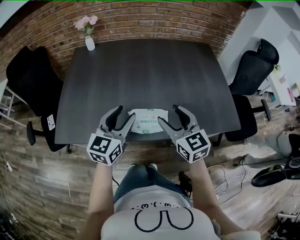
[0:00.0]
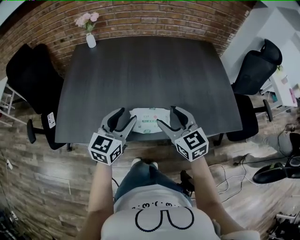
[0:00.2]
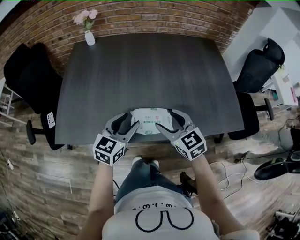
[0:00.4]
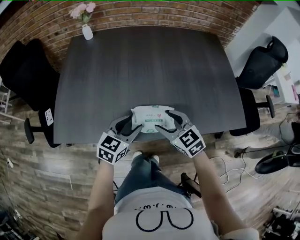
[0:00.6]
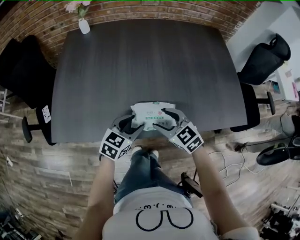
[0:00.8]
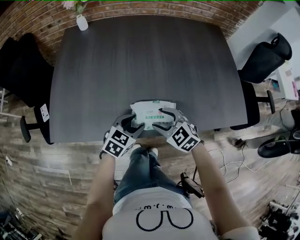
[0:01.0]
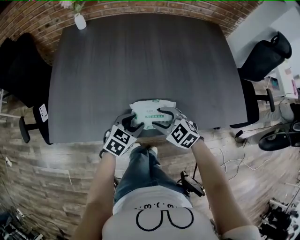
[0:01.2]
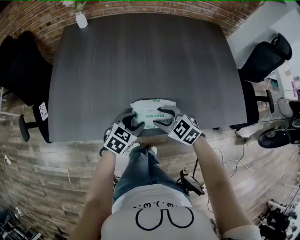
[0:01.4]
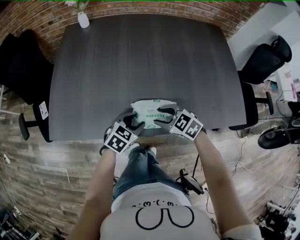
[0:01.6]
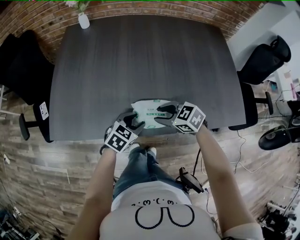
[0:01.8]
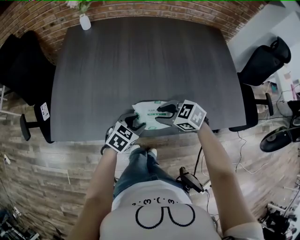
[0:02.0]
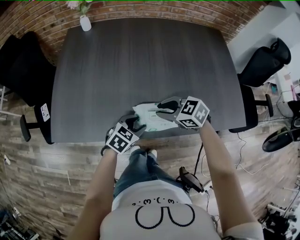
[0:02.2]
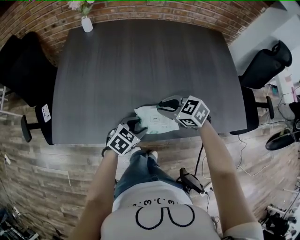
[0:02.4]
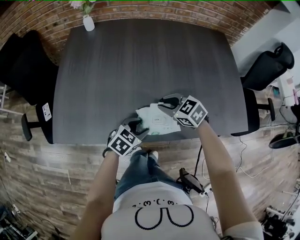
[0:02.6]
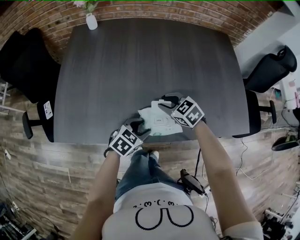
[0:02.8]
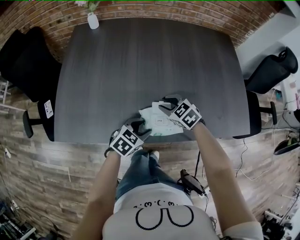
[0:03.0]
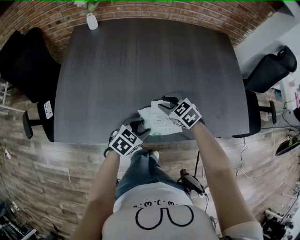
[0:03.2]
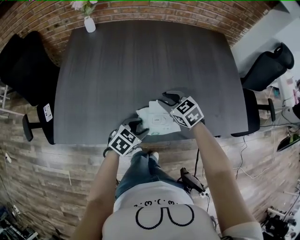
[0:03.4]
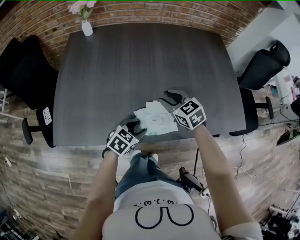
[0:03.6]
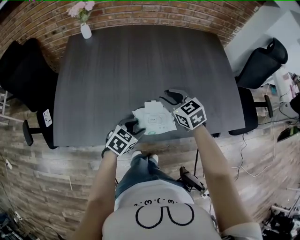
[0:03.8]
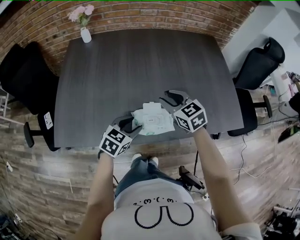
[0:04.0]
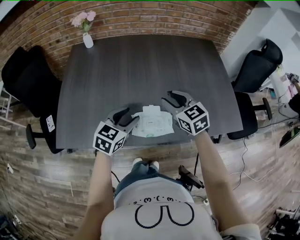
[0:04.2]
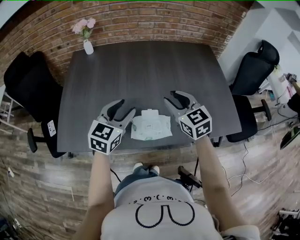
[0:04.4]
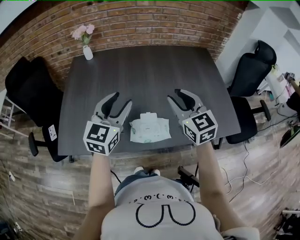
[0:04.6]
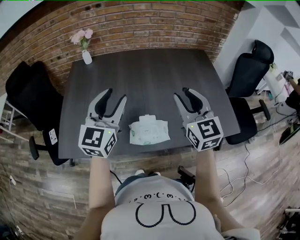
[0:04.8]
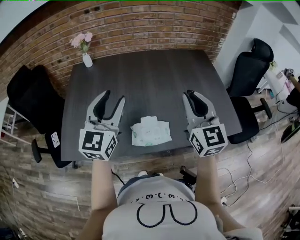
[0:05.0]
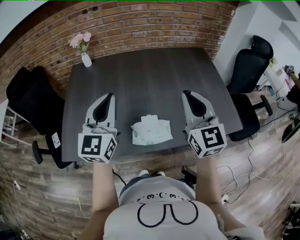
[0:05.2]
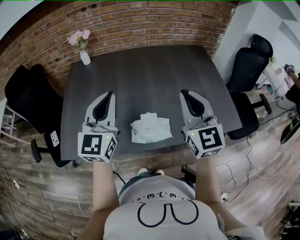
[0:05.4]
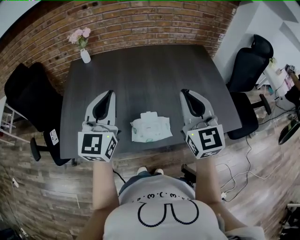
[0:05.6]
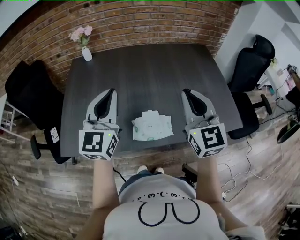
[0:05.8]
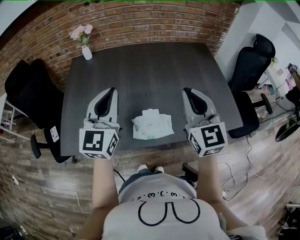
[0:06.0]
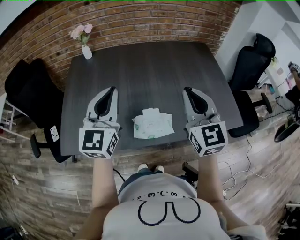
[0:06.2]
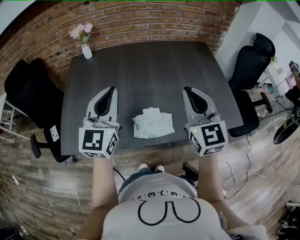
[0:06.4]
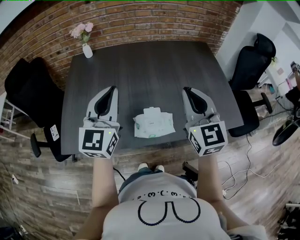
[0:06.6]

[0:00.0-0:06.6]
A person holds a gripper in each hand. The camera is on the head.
0:00.0 to 0:01.6: The two grippers go roughly 20 cm downward. The left gripper tilts its fingers about 40 degrees downward. The right gripper angles its fingers downward, by about 30 degrees.
0:01.6 to 0:03.2: The right gripper moves roughly 10 cm.
0:03.2 to 0:05.0: The two grippers go about 35 cm upward. The right gripper tips its fingers upward by some 50 degrees; the left gripper tips its fingers upward by approximately 50 degrees.
0:05.0 to 0:06.6: The left gripper closes up.

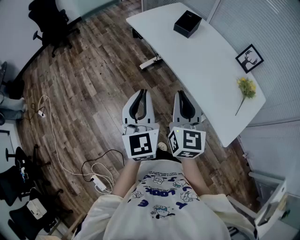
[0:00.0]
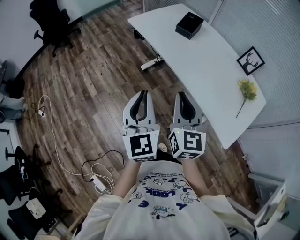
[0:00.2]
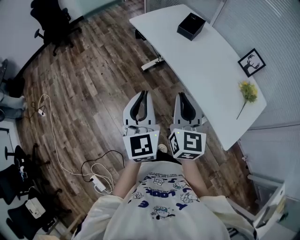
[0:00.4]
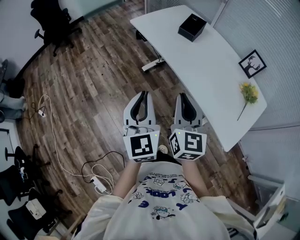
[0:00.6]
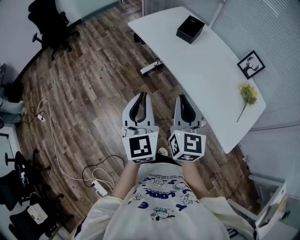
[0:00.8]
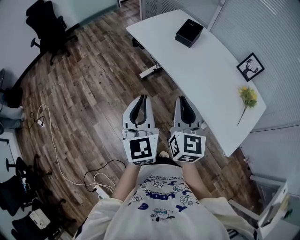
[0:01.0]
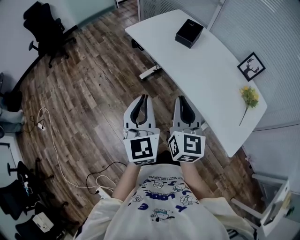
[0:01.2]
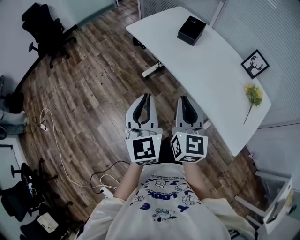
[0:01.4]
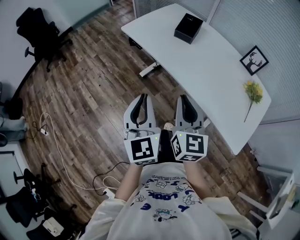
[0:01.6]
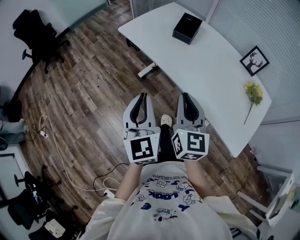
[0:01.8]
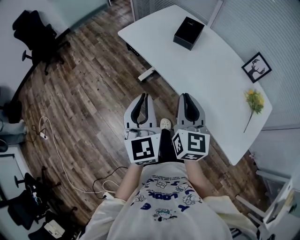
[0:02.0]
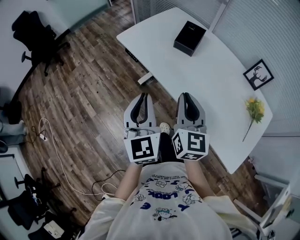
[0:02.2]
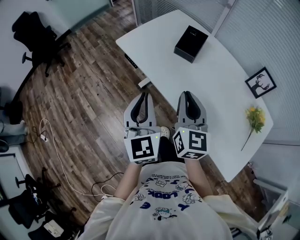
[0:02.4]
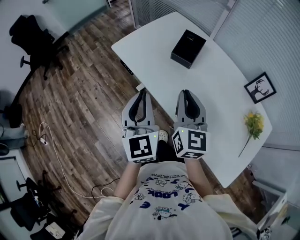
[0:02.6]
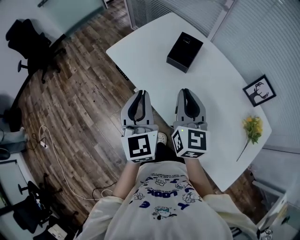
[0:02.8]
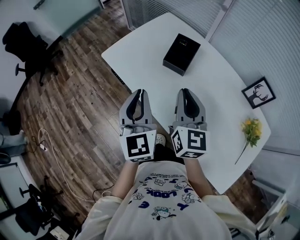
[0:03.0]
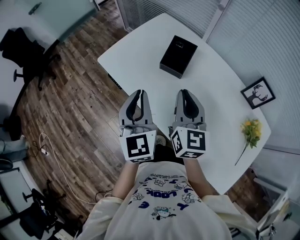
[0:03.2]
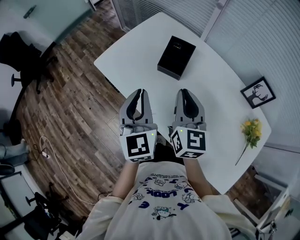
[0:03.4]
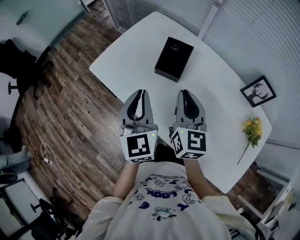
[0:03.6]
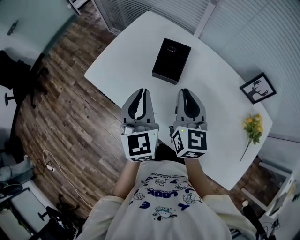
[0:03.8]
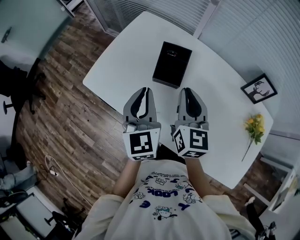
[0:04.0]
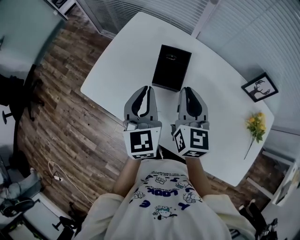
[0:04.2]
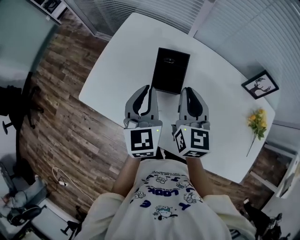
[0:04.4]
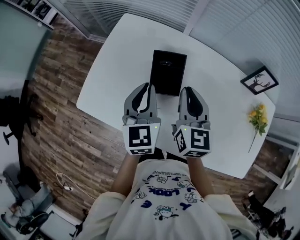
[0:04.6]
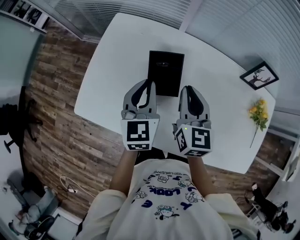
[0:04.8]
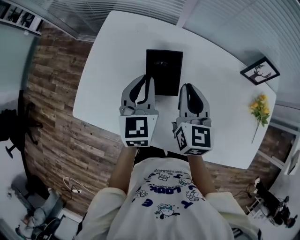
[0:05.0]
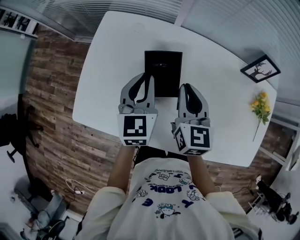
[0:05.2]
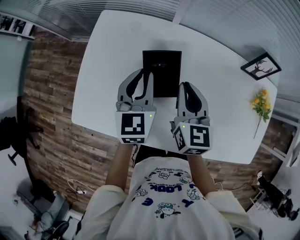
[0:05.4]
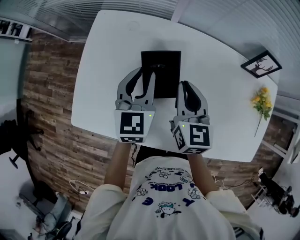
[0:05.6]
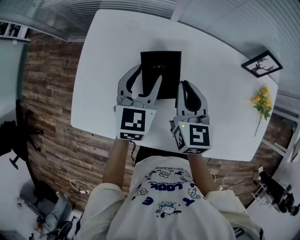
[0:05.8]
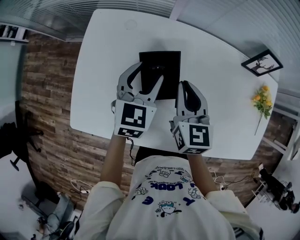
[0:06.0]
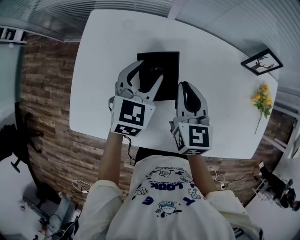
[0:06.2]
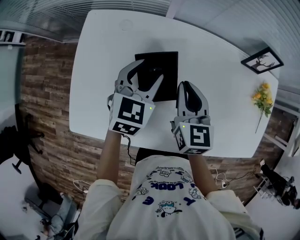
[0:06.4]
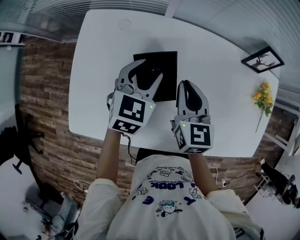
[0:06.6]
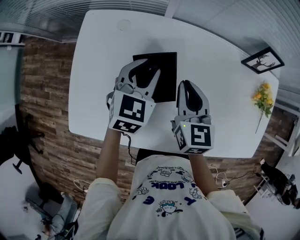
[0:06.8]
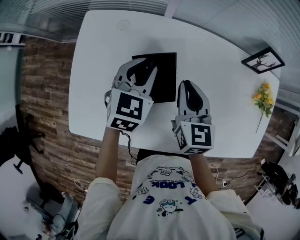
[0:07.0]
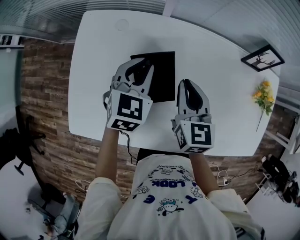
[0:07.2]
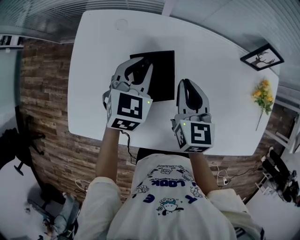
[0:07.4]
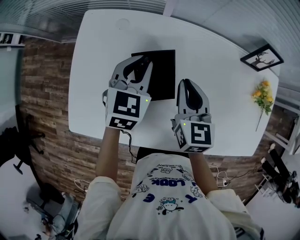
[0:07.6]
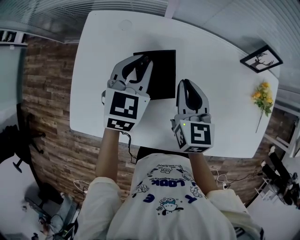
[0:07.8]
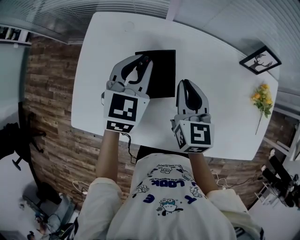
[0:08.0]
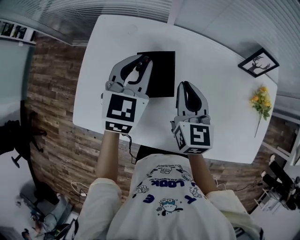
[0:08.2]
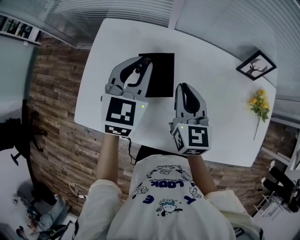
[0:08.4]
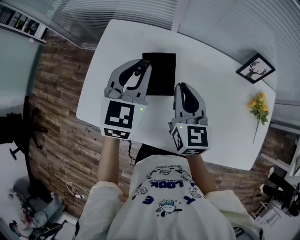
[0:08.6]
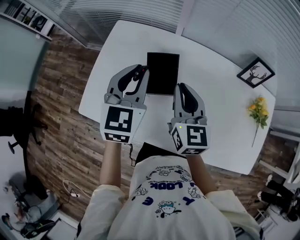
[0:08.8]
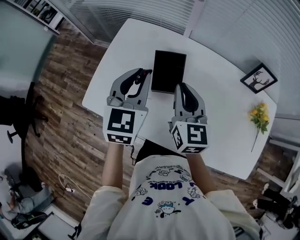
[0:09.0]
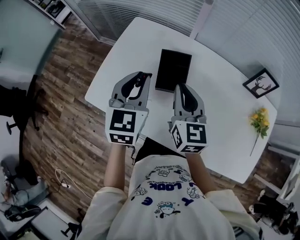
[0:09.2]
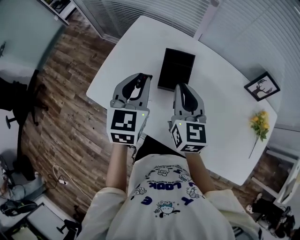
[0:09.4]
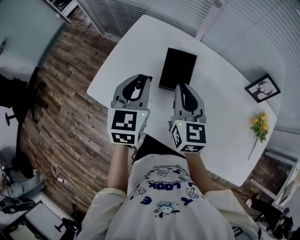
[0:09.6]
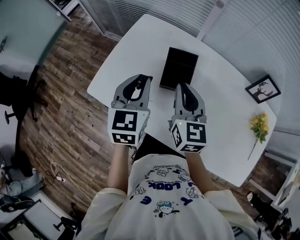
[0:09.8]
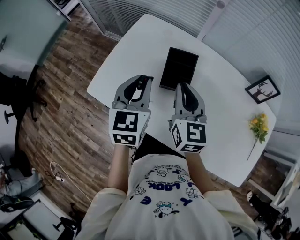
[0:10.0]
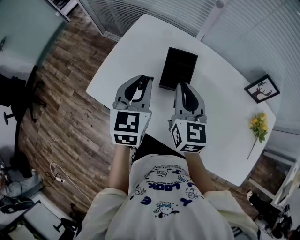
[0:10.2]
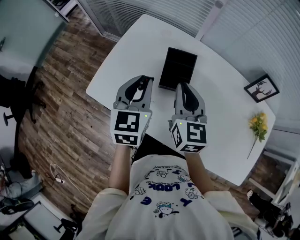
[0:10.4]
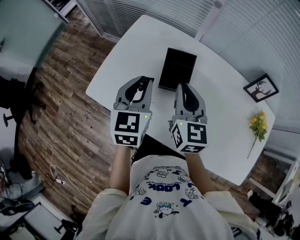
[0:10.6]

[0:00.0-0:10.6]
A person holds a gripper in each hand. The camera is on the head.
0:00.0 to 0:01.6: The grippers both shift forward by roughly 10 cm.
0:01.6 to 0:03.0: The grippers both shift forward by about 30 cm.
0:03.0 to 0:04.6: The left gripper moves some 30 cm, and turns by about 30 degrees; the right gripper ends up approximately 20 cm from where it was, and changes its angle by approximately 30 degrees.
0:04.6 to 0:06.0: The left gripper moves forward and downward, some 15 cm, swivels some 30 degrees, and opens. Meanwhile the right gripper shifts some 10 cm downward and forward.
0:06.0 to 0:07.6: The left gripper closes up.
0:07.6 to 0:09.0: The left gripper is displaced backward and upward by some 20 cm, and turns by roughly 20 degrees; the right gripper goes roughly 15 cm upward and backward.
0:09.0 to 0:10.6: The left gripper shifts by some 5 cm.

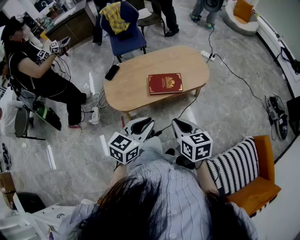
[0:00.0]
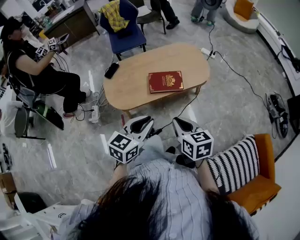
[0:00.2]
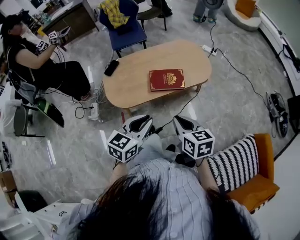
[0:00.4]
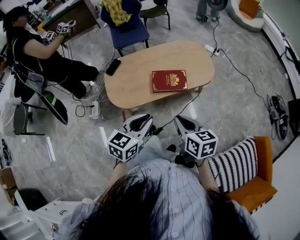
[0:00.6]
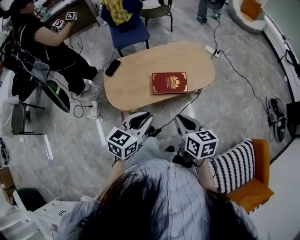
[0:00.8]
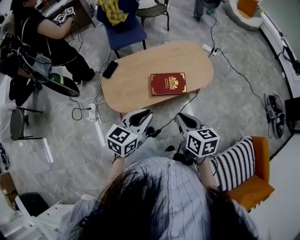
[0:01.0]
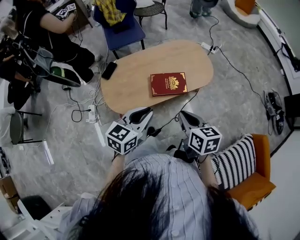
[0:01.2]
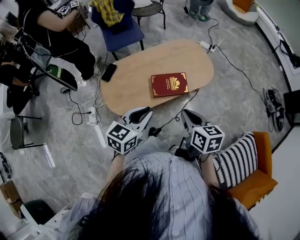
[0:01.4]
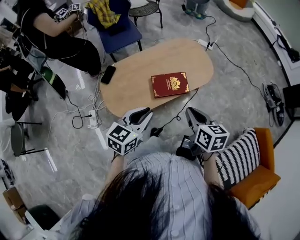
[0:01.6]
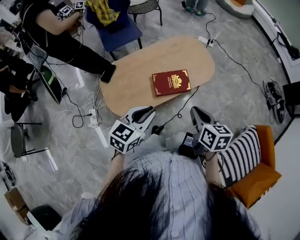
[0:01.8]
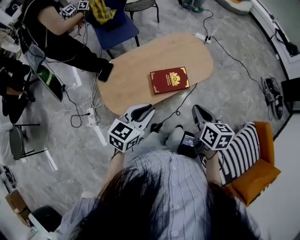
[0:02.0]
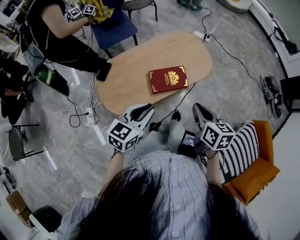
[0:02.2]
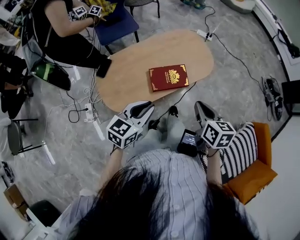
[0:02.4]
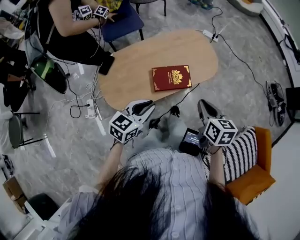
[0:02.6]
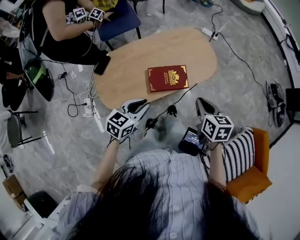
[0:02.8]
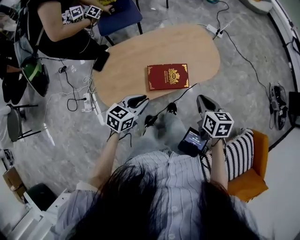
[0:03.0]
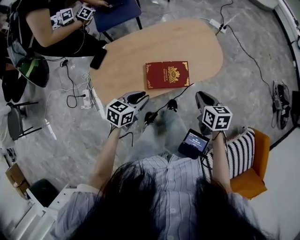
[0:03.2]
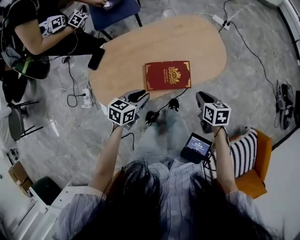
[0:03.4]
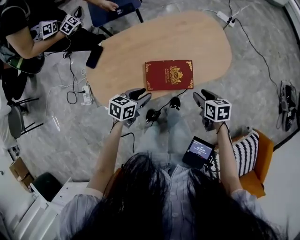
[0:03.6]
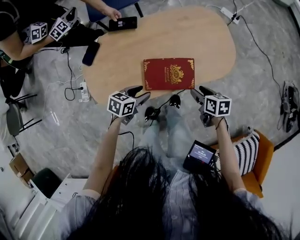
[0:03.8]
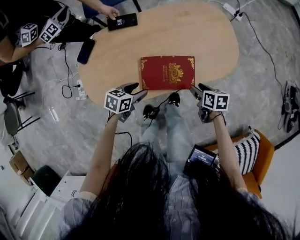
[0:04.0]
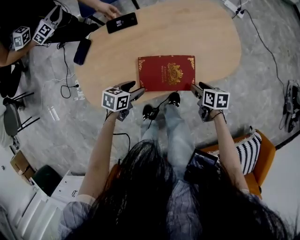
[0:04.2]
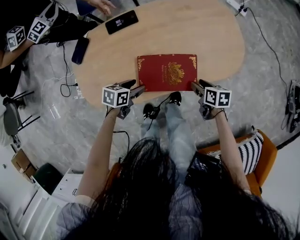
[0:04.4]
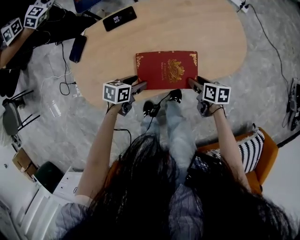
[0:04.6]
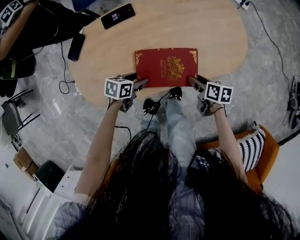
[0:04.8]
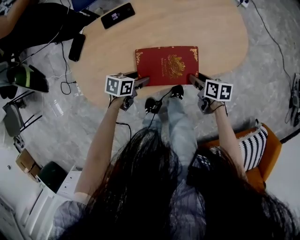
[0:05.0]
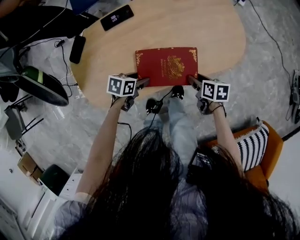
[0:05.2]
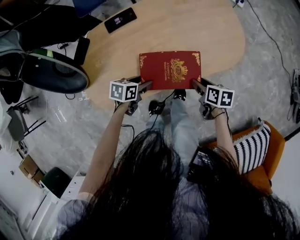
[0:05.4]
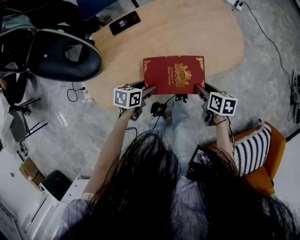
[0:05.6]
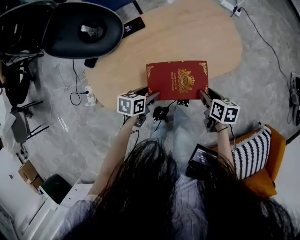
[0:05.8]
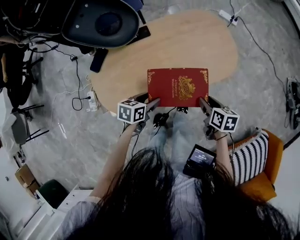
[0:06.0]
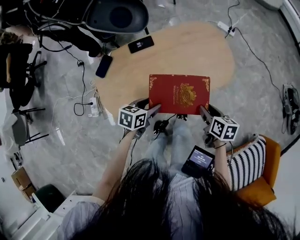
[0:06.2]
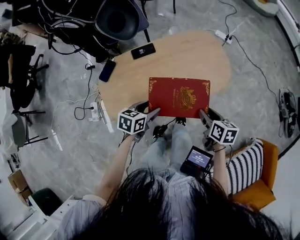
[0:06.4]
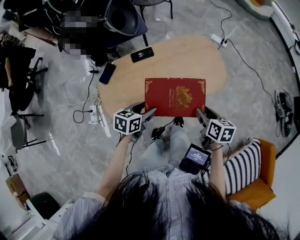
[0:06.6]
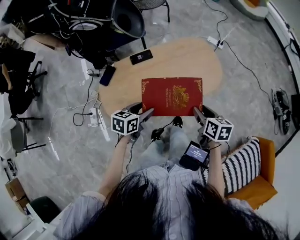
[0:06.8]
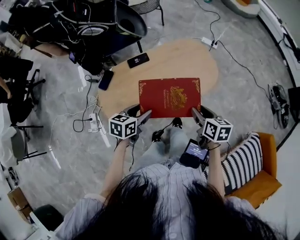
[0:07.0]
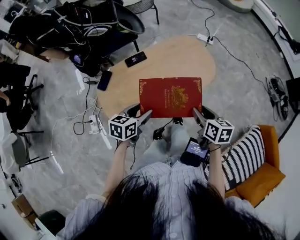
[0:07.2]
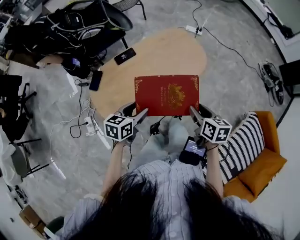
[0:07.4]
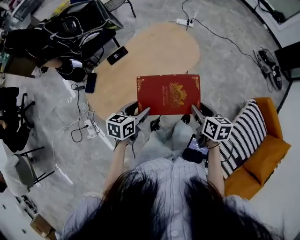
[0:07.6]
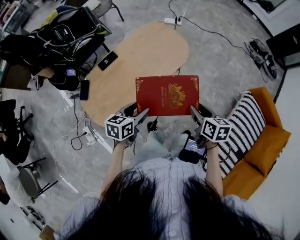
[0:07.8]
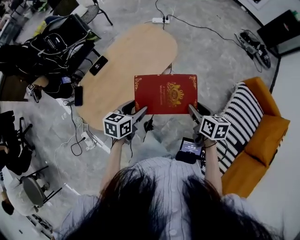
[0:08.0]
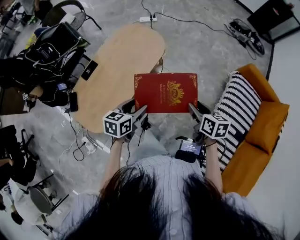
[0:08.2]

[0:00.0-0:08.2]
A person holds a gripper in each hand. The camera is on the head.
0:00.0 to 0:01.6: The left gripper travels forward and to the left by approximately 20 cm; the right gripper travels forward by some 15 cm.
0:01.6 to 0:03.2: The left gripper goes approximately 20 cm downward and forward, and swivels about 20 degrees, while the right gripper shifts approximately 25 cm forward, downward and to the right.
0:03.2 to 0:05.0: The grippers both shift downward by roughly 30 cm. The left gripper changes its angle by approximately 30 degrees, and opens its fingers; the right gripper turns by approximately 30 degrees, and opens its fingers.
0:05.0 to 0:06.6: The two grippers go about 30 cm upward. The right gripper turns by roughly 20 degrees, while the left gripper changes its angle by some 20 degrees.
0:06.6 to 0:08.2: The left gripper shifts by approximately 20 cm, and turns by roughly 30 degrees; the right gripper shifts by some 25 cm, and rotates some 30 degrees.
